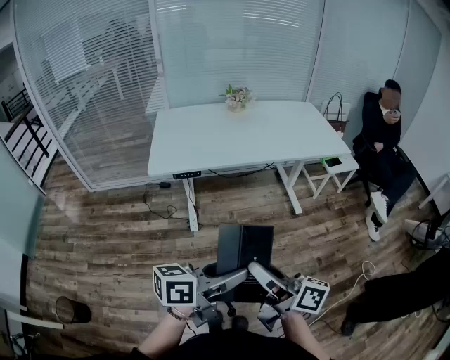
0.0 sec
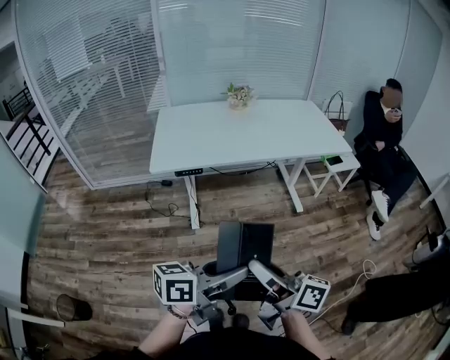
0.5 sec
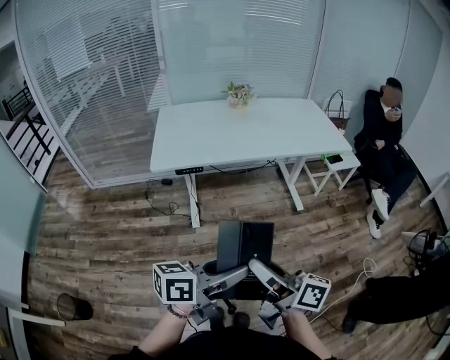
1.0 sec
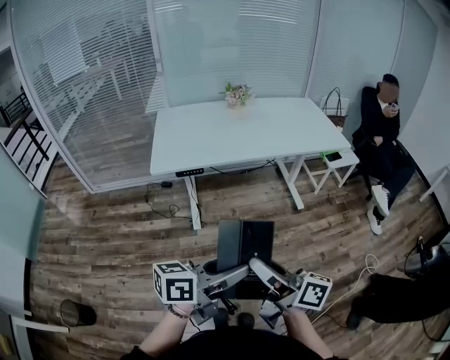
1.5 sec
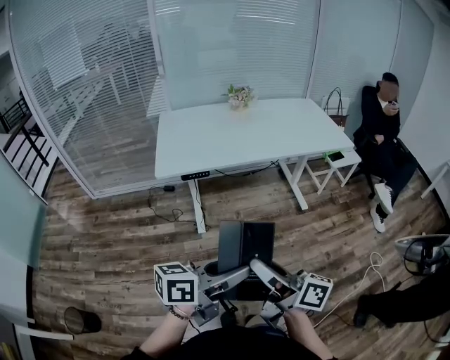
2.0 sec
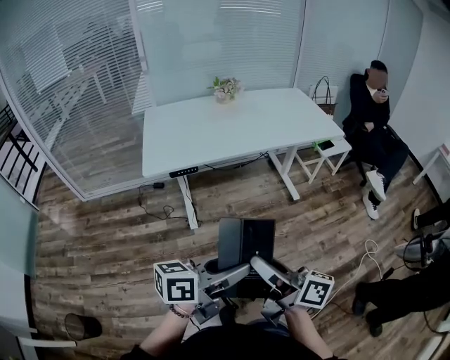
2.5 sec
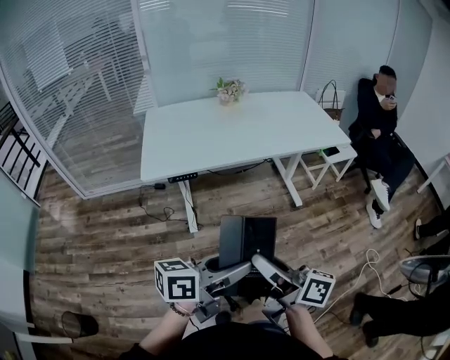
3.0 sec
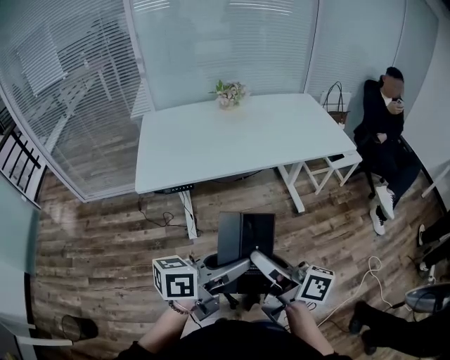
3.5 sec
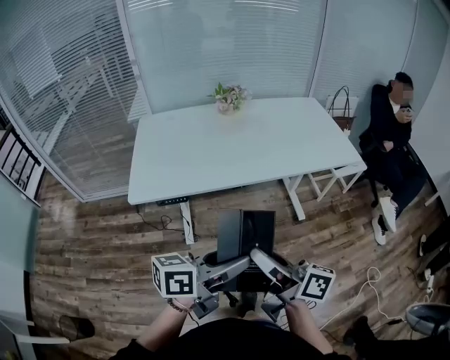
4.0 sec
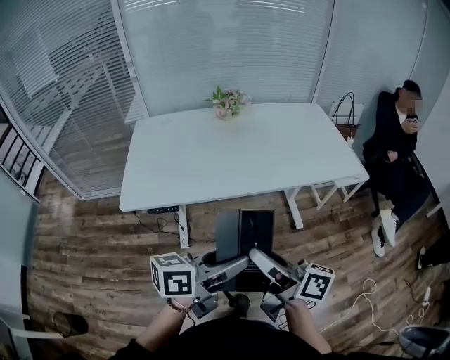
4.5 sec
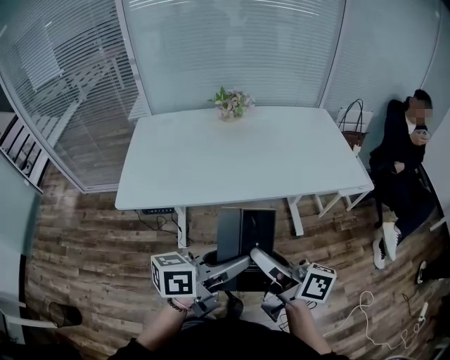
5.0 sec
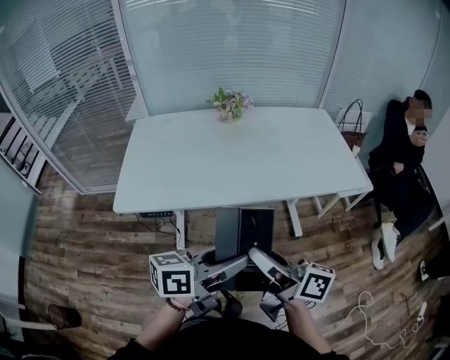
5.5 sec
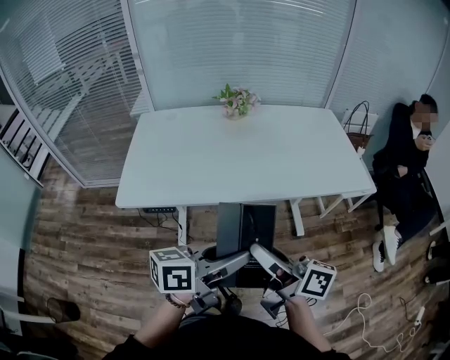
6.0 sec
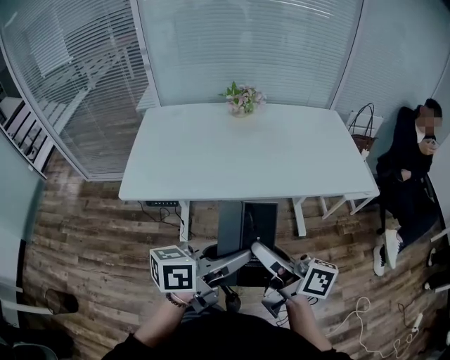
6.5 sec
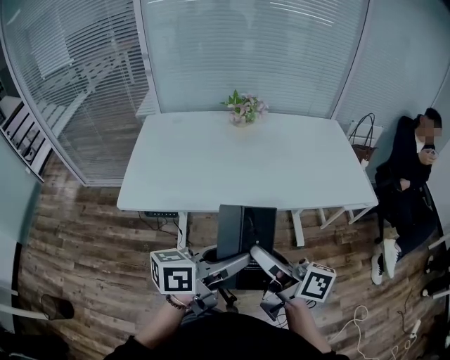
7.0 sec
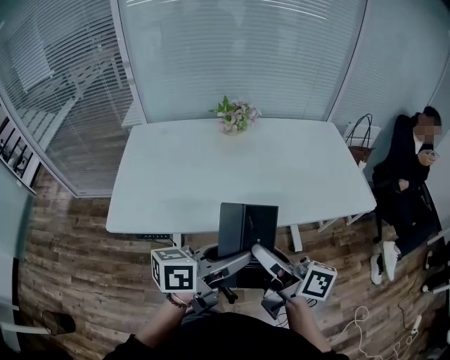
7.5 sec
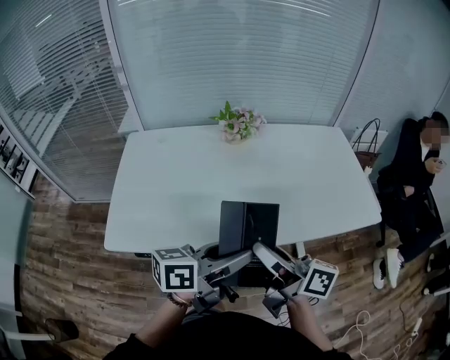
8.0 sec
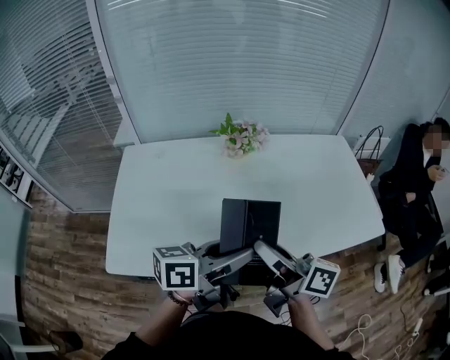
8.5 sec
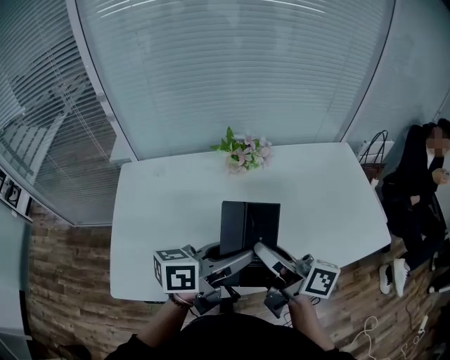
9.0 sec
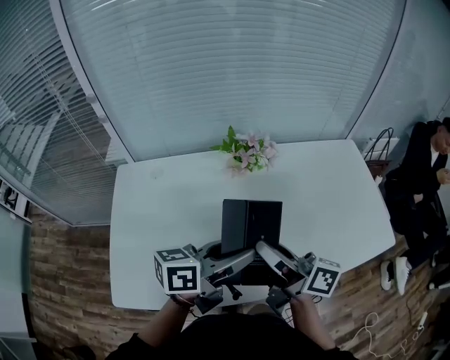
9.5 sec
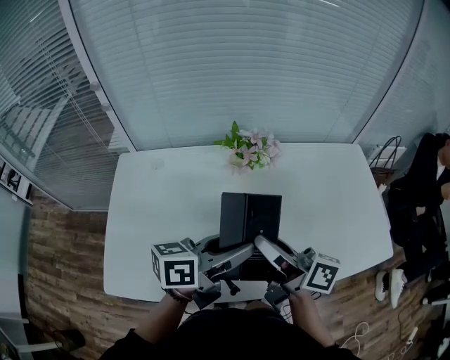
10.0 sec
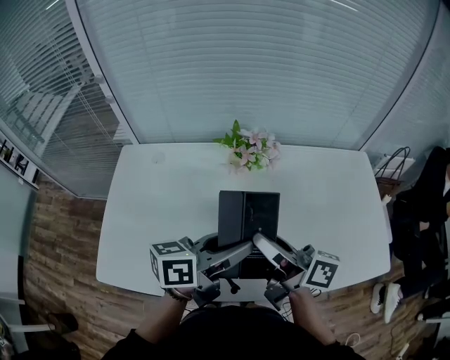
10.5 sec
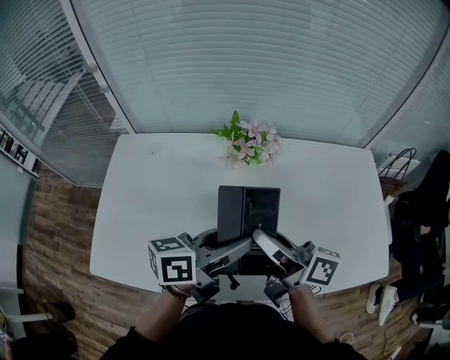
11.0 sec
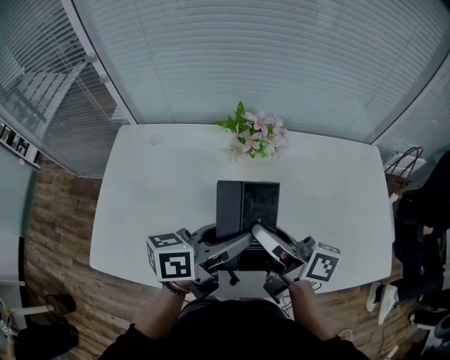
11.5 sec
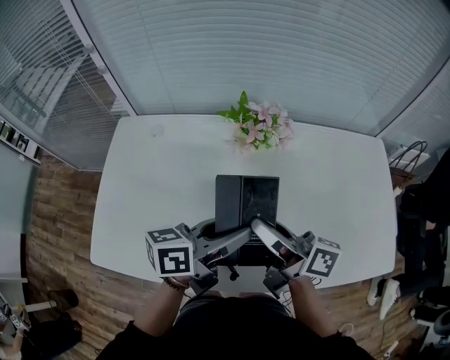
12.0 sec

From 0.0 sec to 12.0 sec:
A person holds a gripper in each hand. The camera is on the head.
From 0.0 sec to 2.0 sec: The grippers stay close to where they were, moving slightly.
From 2.0 sec to 4.0 sec: Both grippers move forward, roughly 20 cm.
From 4.0 sec to 6.0 sec: Both grippers travel together forward, approximately 10 cm.
From 6.0 sec to 8.0 sec: Both grippers travel together forward, approximately 20 cm.
From 8.0 sec to 10.0 sec: The two grippers go approximately 20 cm forward.
From 10.0 sec to 12.0 sec: The right gripper changes place by about 5 cm. The left gripper changes place by approximately 5 cm.

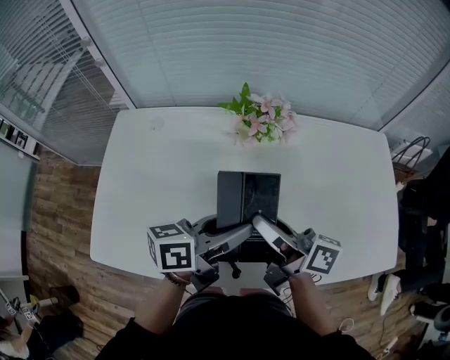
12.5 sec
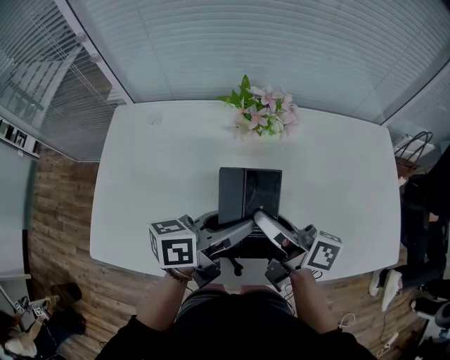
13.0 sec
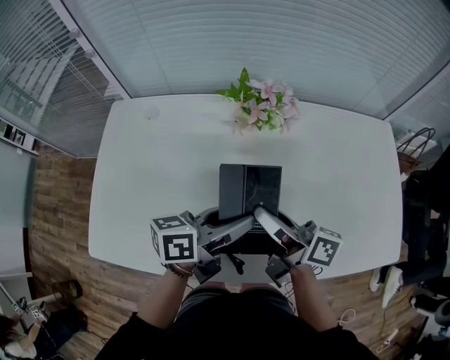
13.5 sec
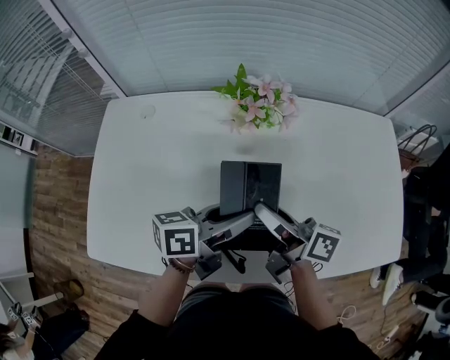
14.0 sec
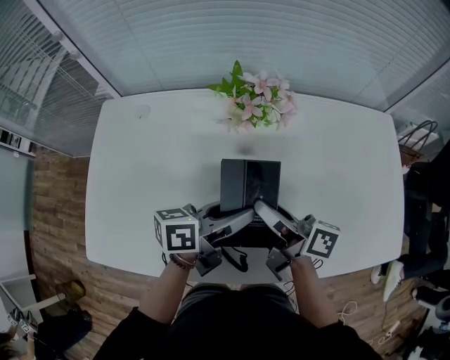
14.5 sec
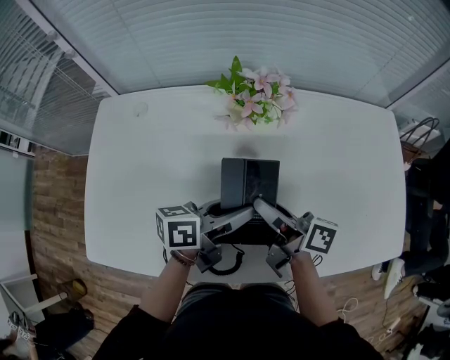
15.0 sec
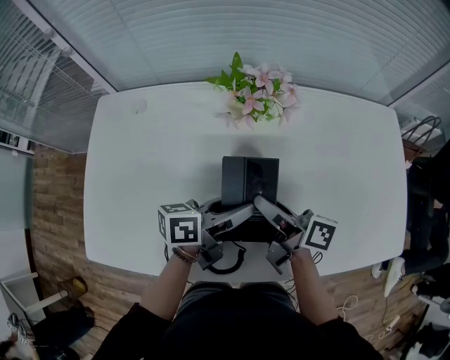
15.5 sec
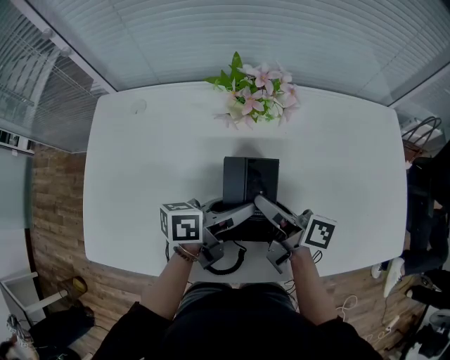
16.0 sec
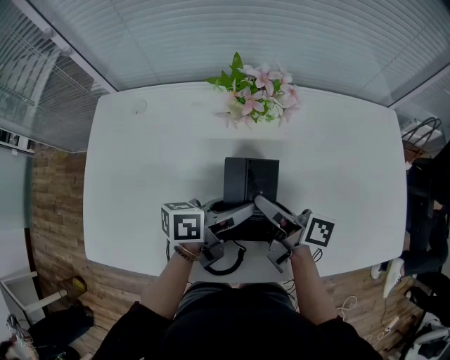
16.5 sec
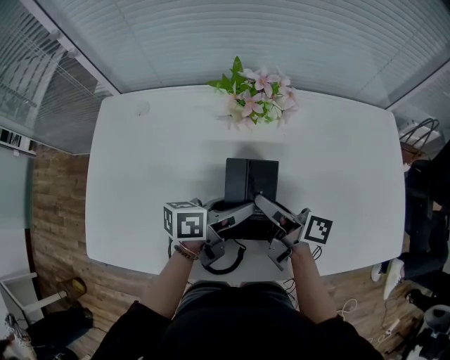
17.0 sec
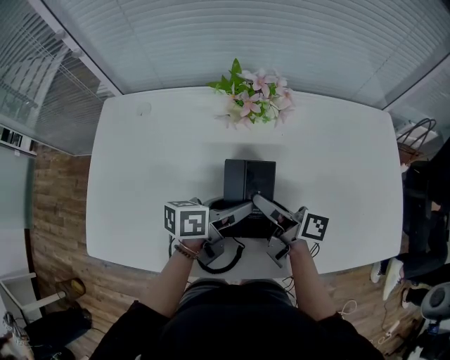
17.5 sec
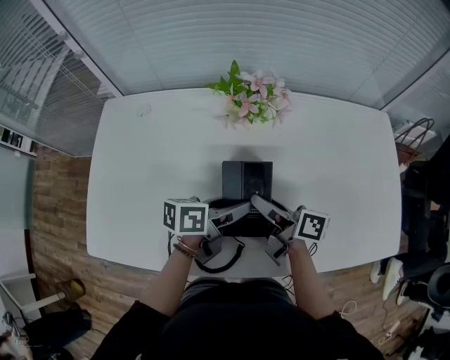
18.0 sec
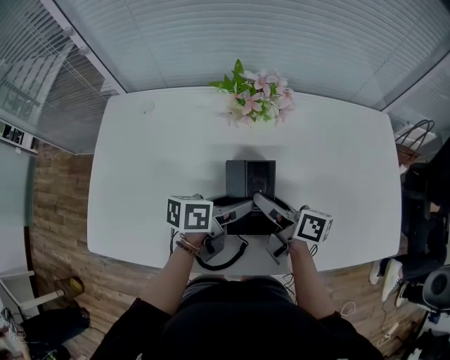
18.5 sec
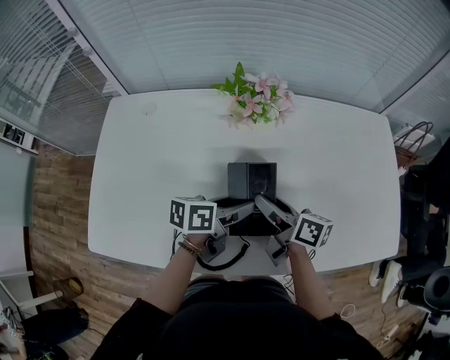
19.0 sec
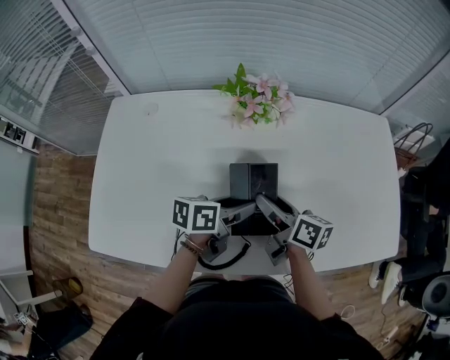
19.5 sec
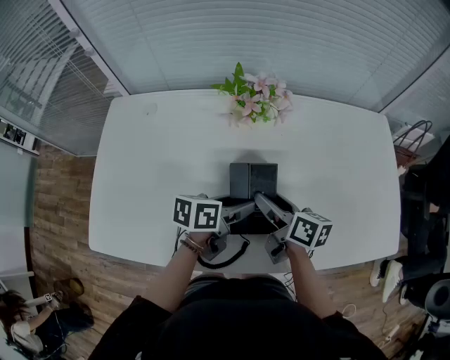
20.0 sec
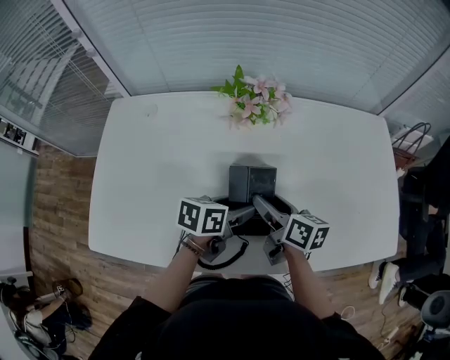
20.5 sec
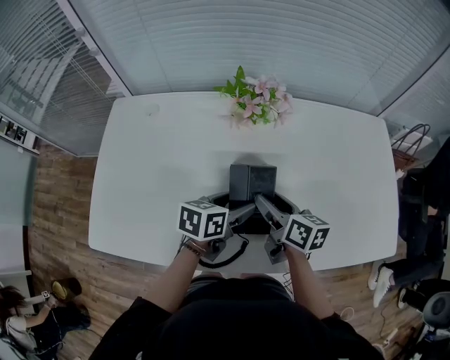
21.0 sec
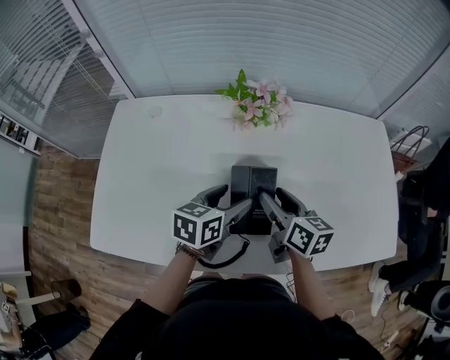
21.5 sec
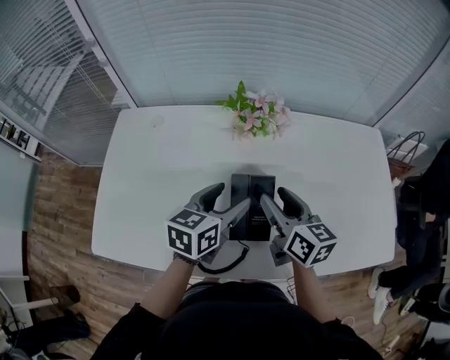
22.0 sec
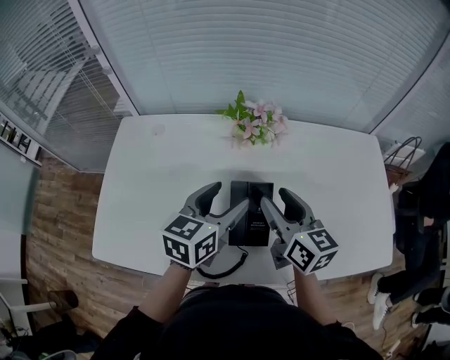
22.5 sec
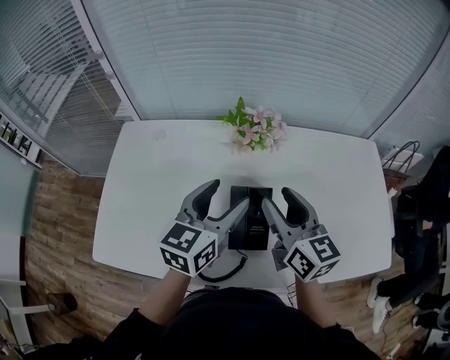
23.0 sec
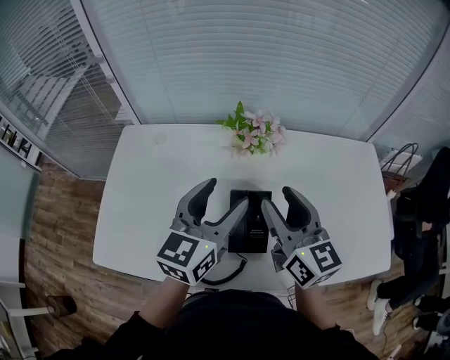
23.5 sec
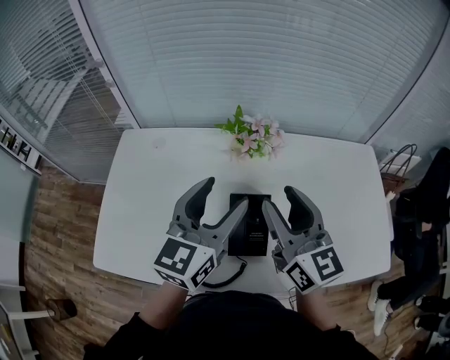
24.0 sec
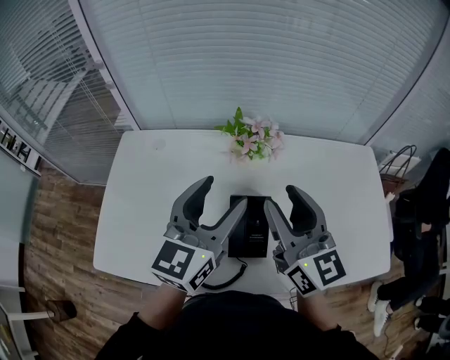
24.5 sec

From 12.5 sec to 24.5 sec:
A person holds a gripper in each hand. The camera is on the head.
From 12.5 sec to 14.5 sec: Both grippers move downward, about 5 cm.
From 14.5 sec to 16.5 sec: There are only small adjustments of the grippers.
From 16.5 sec to 18.5 sec: The grippers move only a little.
From 18.5 sec to 20.5 sec: The grippers make only small movements.
From 20.5 sec to 22.5 sec: The grippers both shift upward by some 15 cm. The right gripper rotates about 30 degrees, while the left gripper changes its angle by roughly 30 degrees.
From 22.5 sec to 24.5 sec: Both grippers travel together upward, approximately 10 cm. The left gripper swivels some 20 degrees, while the right gripper rotates about 20 degrees.

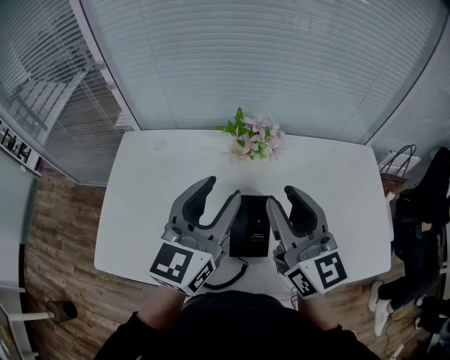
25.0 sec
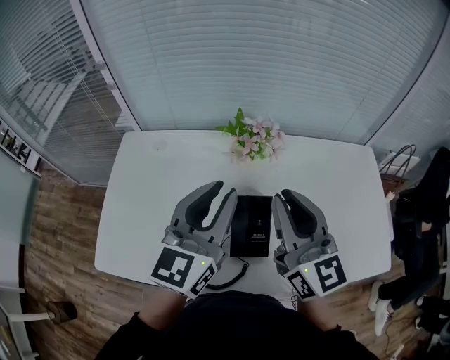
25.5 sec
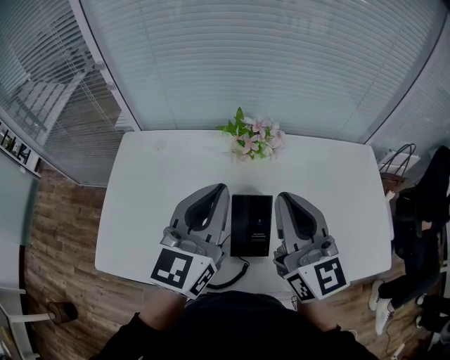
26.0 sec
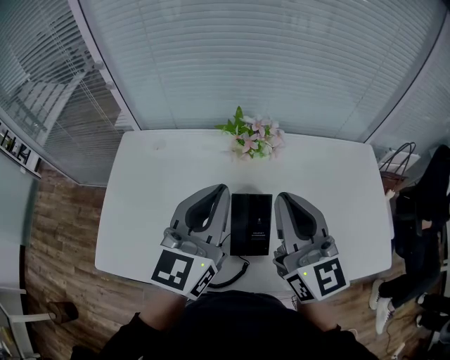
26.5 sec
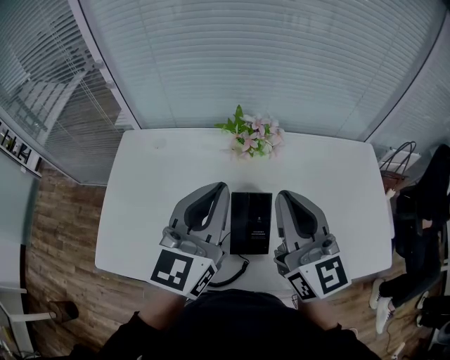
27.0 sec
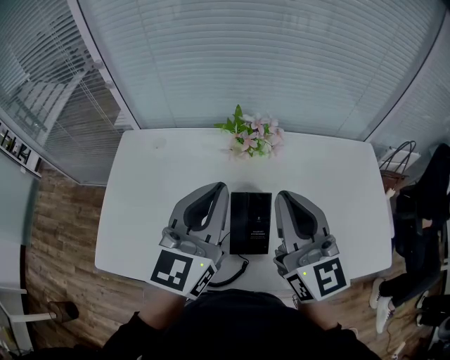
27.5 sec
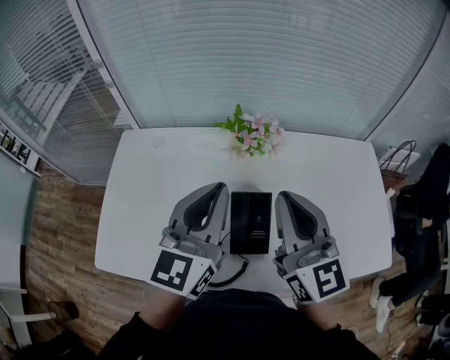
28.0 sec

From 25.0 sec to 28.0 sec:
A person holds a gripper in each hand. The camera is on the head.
From 25.0 sec to 26.5 sec: The right gripper closes its fingers. Meanwhile the left gripper closes up.
From 26.5 sec to 28.0 sec: The two grippers keep their place.
